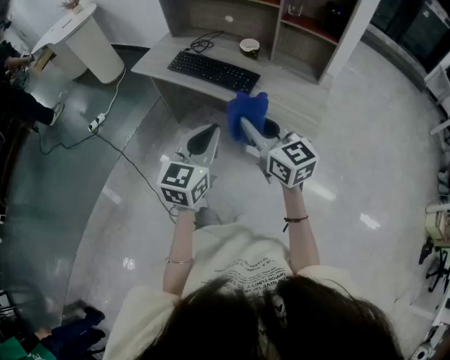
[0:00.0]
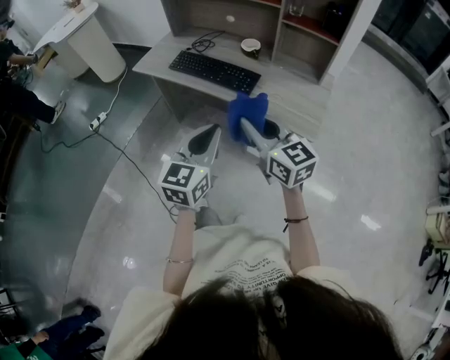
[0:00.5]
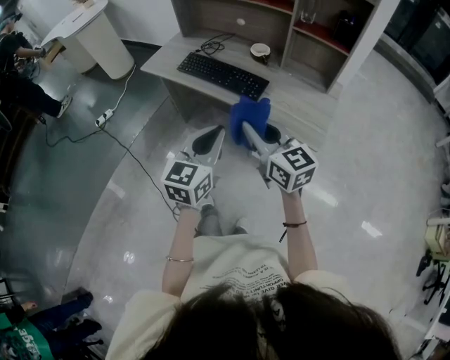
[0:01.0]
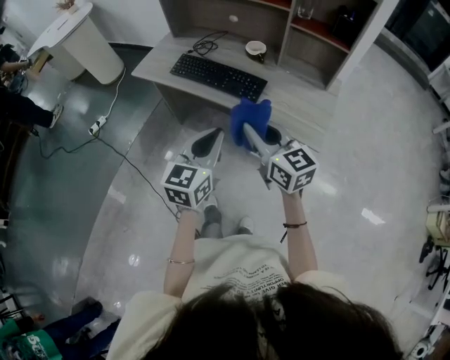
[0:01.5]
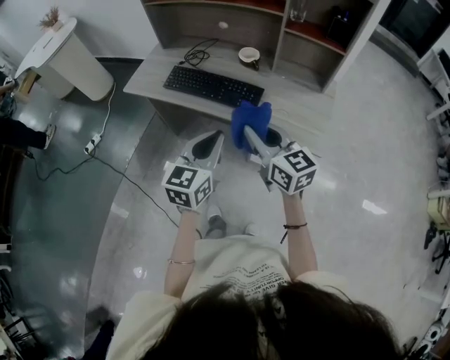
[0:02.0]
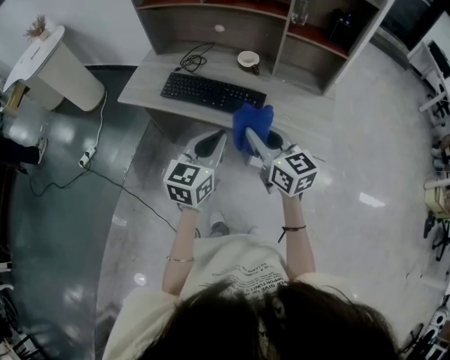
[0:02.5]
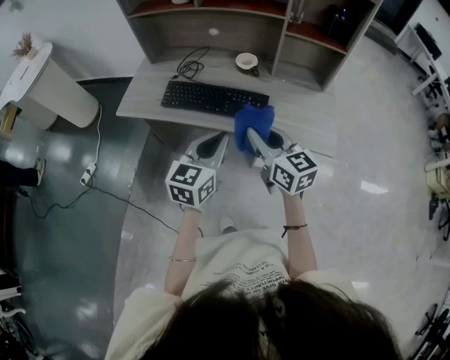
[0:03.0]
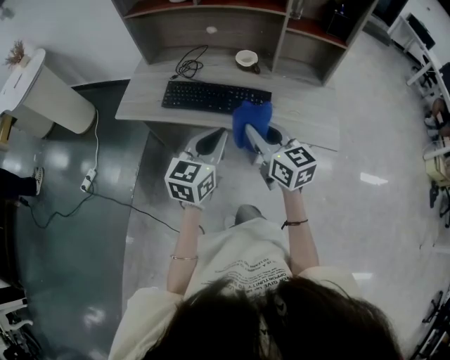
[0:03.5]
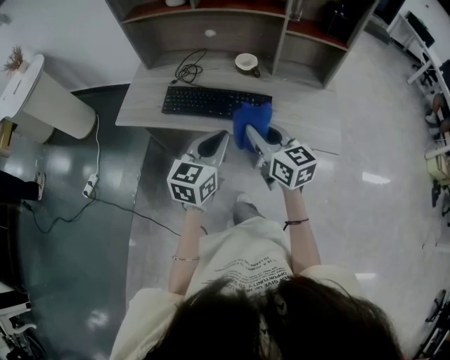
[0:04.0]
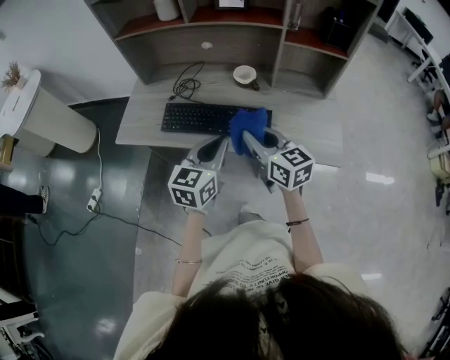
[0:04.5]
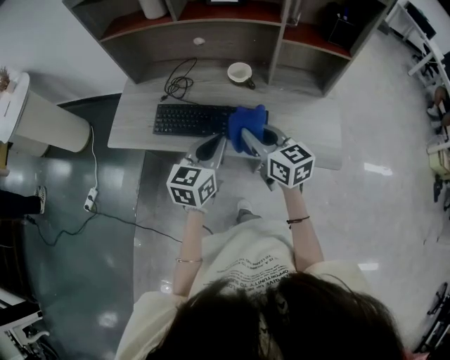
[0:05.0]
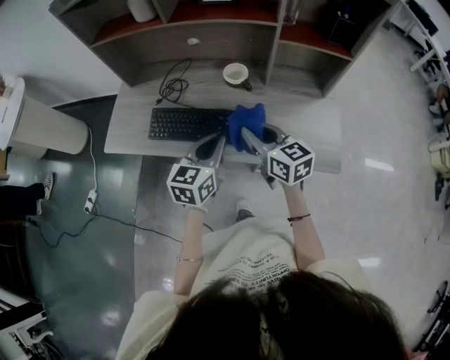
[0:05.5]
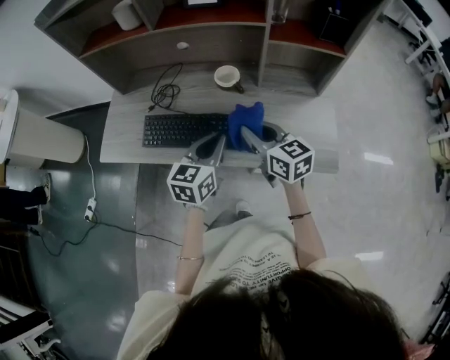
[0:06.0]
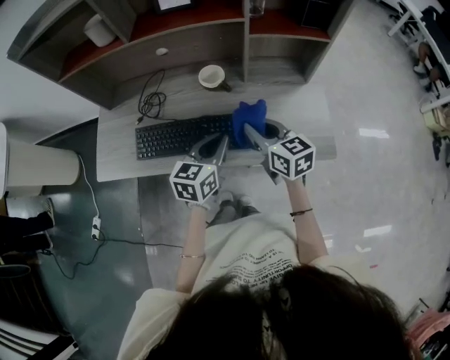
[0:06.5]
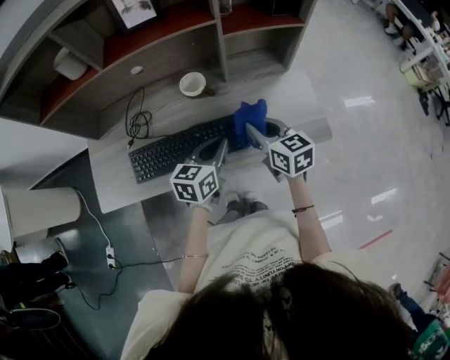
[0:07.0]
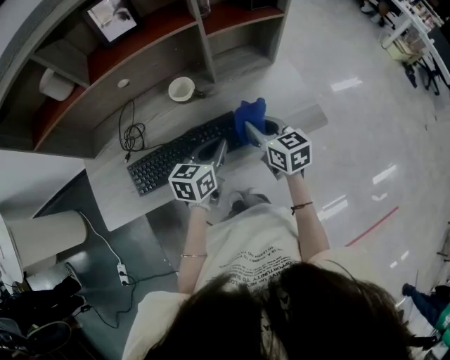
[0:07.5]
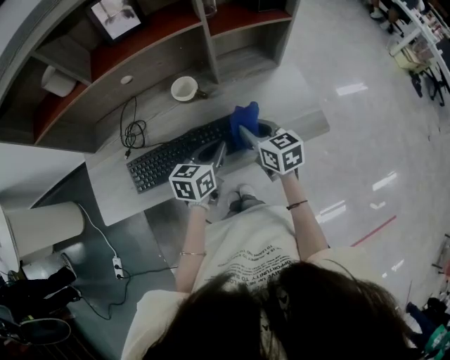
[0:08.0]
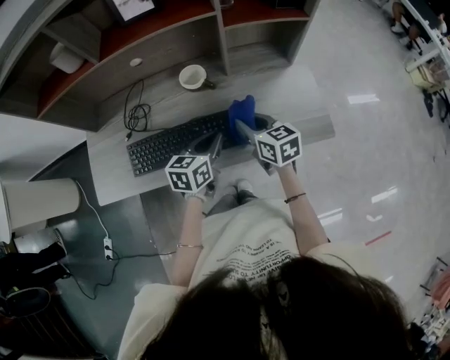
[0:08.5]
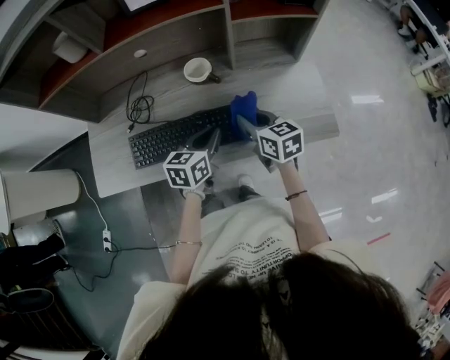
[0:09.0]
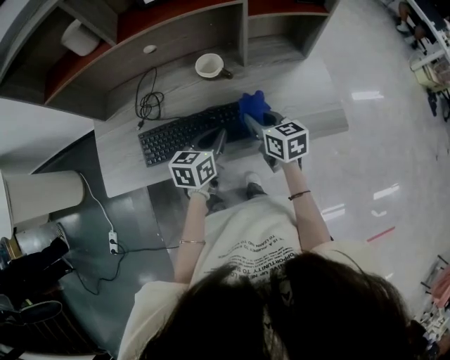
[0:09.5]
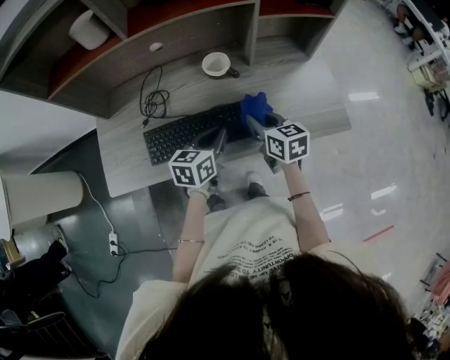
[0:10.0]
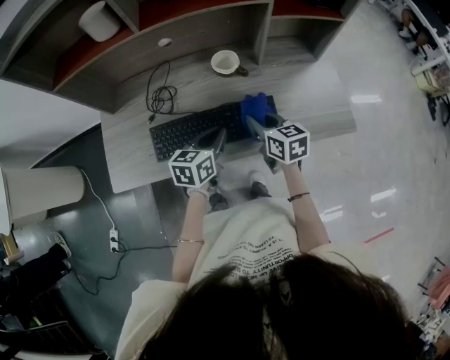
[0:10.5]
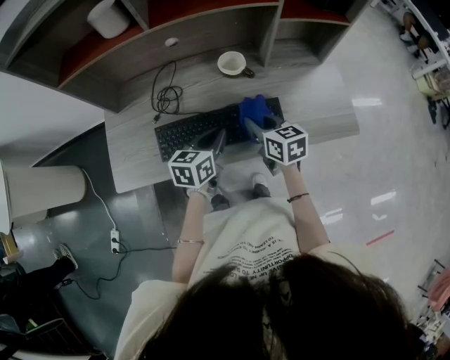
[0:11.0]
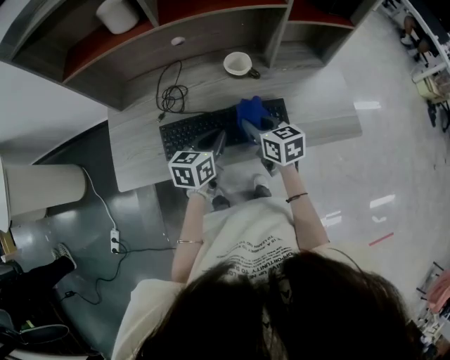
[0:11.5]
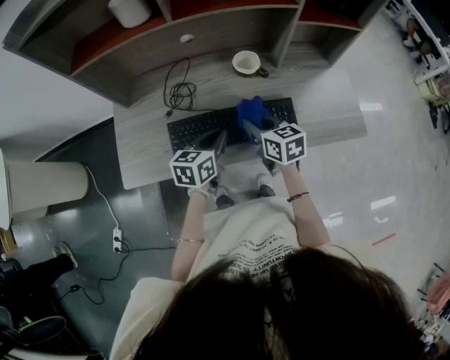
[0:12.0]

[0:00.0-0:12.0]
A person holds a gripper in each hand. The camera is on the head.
0:00.0 to 0:02.0: Both grippers travel together forward, roughly 10 cm.
0:02.0 to 0:04.0: The two grippers go roughly 10 cm forward and to the left.
0:04.0 to 0:06.0: Both grippers travel together forward and to the right, approximately 15 cm.
0:06.0 to 0:08.0: The two grippers go roughly 5 cm downward. The right gripper turns by approximately 30 degrees; the left gripper swivels roughly 30 degrees.
0:08.0 to 0:10.0: The grippers both shift to the left by about 10 cm.
0:10.0 to 0:12.0: The grippers both shift to the left by some 10 cm.

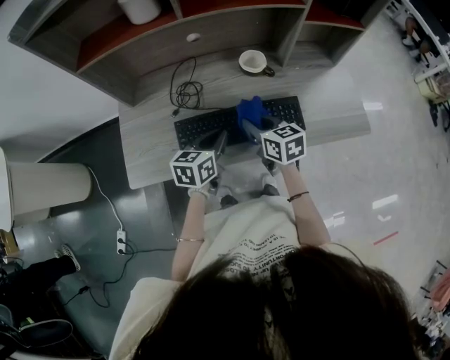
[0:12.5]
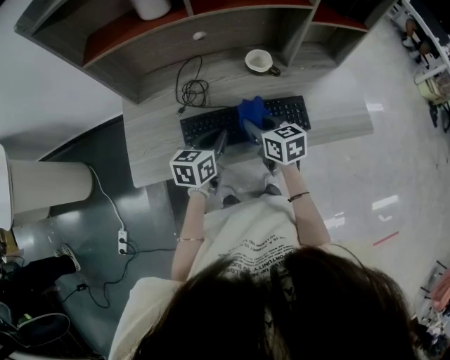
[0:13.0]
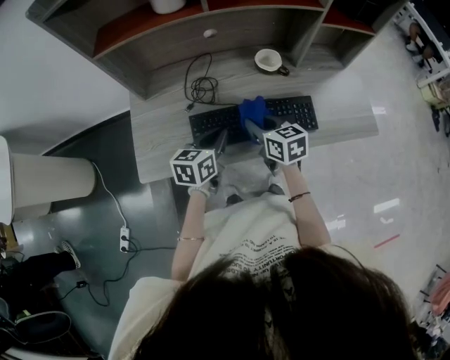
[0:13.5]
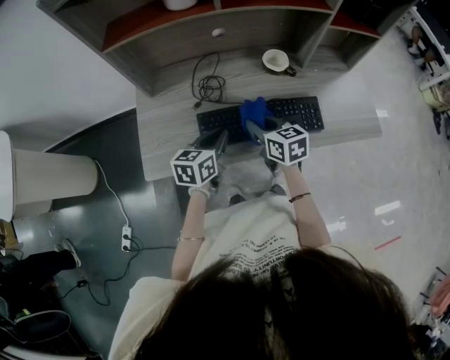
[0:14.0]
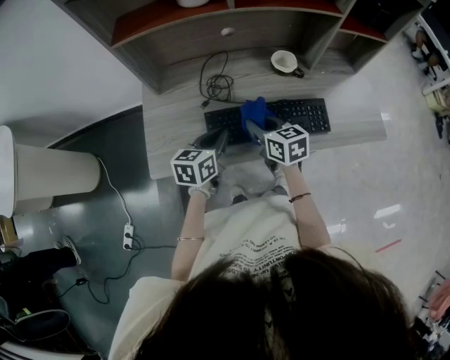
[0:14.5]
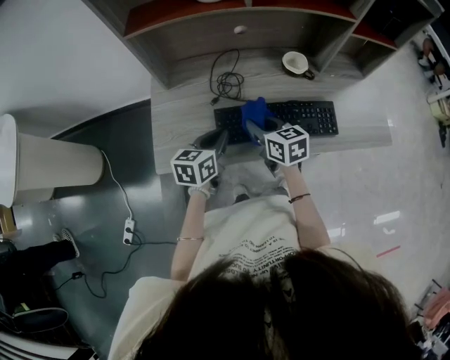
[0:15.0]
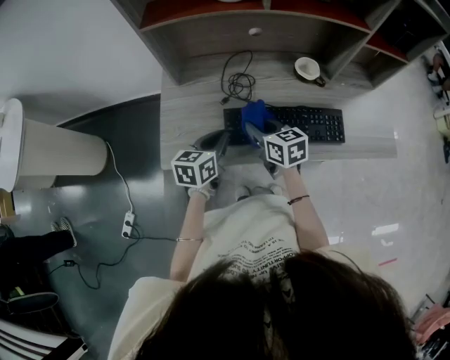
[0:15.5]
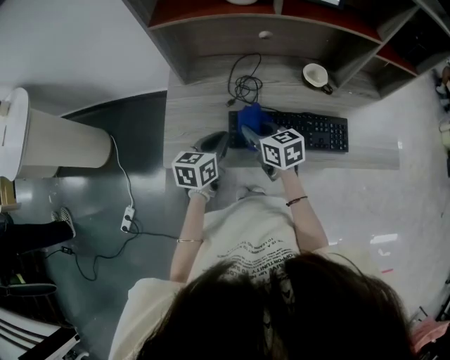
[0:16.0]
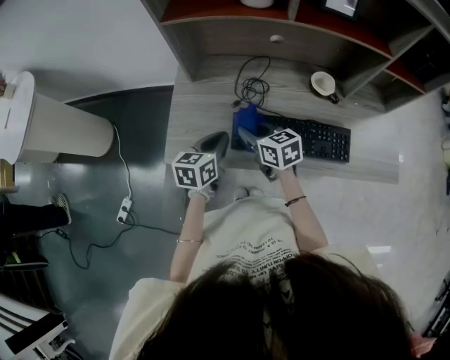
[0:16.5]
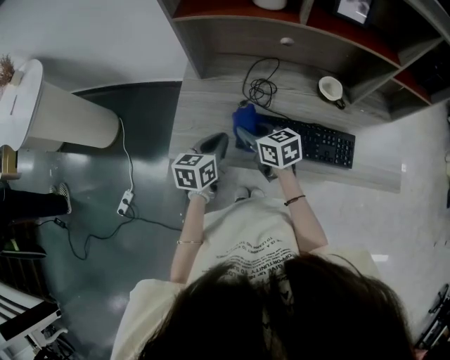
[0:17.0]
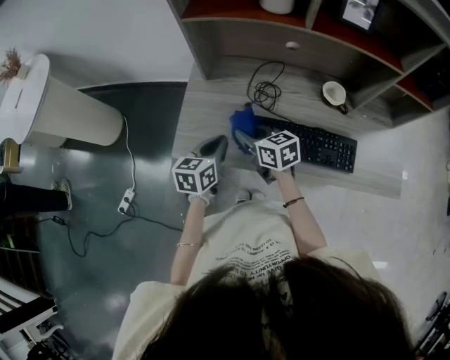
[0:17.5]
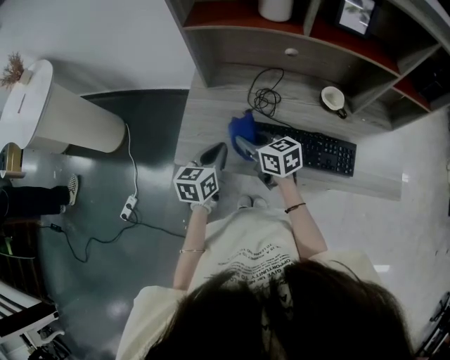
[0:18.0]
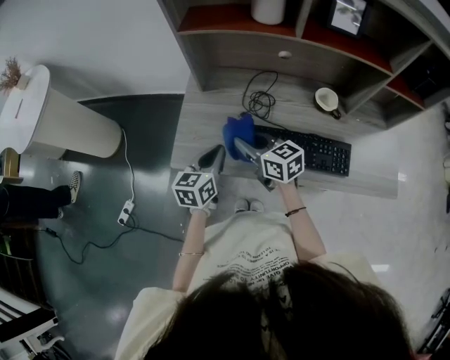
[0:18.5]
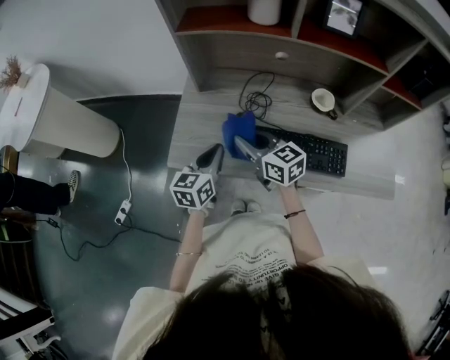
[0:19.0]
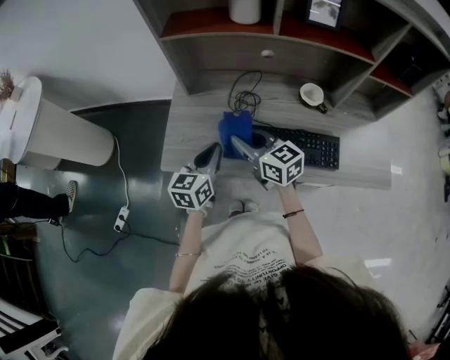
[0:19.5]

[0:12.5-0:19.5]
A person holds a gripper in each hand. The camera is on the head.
0:12.5 to 0:14.5: Both grippers travel together to the left, about 10 cm.
0:14.5 to 0:16.0: The two grippers go approximately 5 cm to the left.
0:16.0 to 0:17.5: The right gripper is displaced to the left by about 5 cm.
0:17.5 to 0:19.5: The right gripper shifts roughly 5 cm upward. Meanwhile the left gripper ends up about 5 cm from where it was.

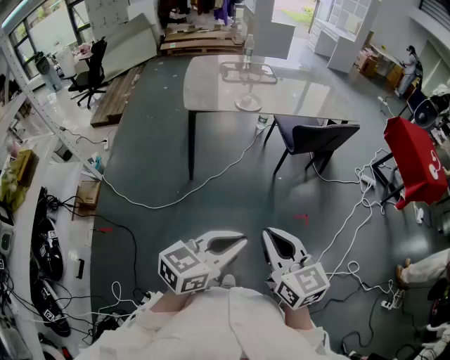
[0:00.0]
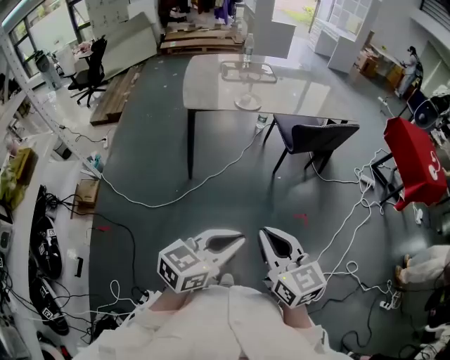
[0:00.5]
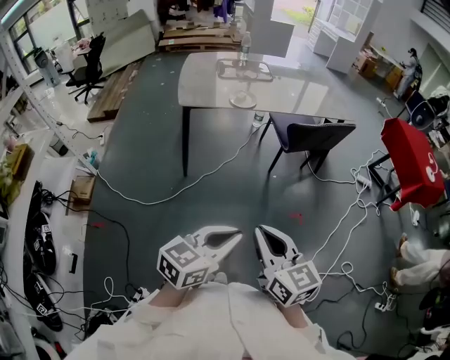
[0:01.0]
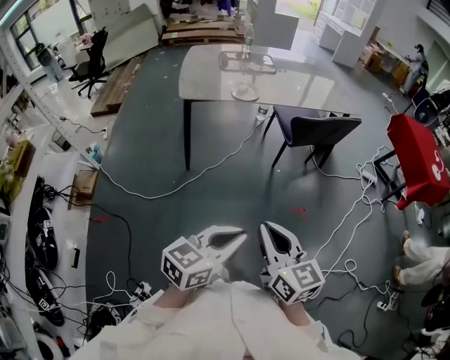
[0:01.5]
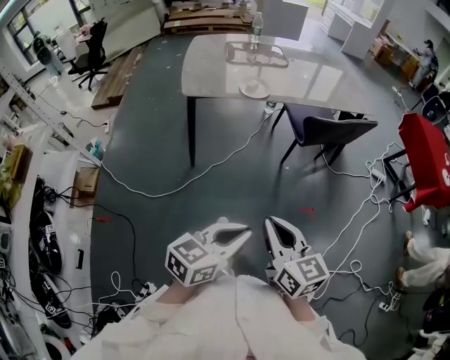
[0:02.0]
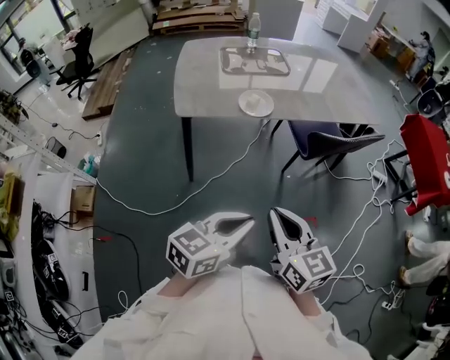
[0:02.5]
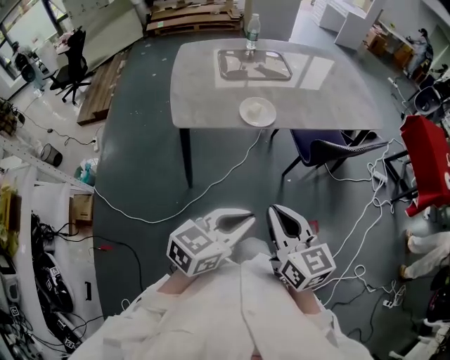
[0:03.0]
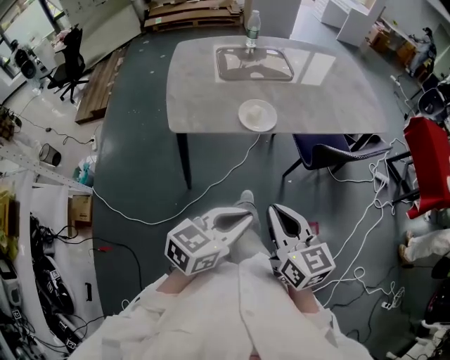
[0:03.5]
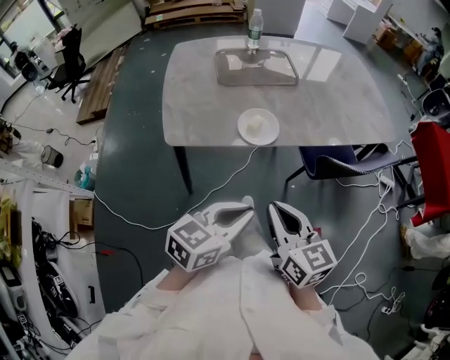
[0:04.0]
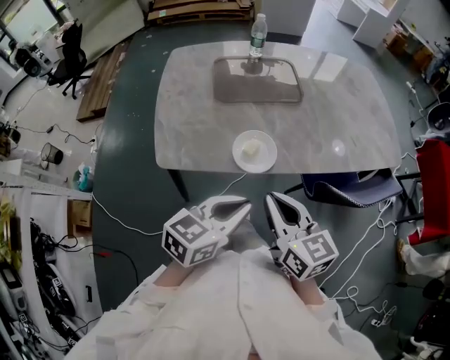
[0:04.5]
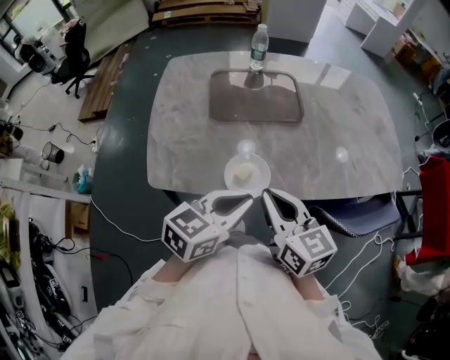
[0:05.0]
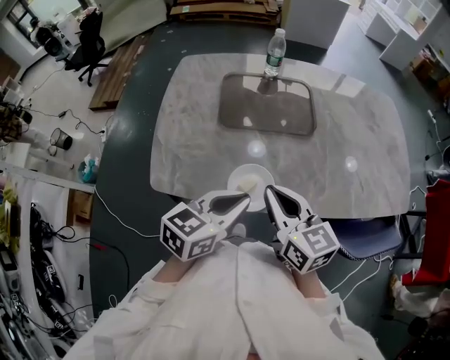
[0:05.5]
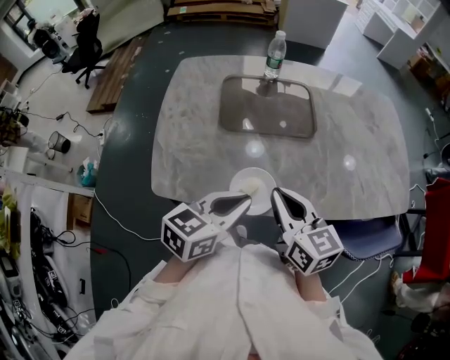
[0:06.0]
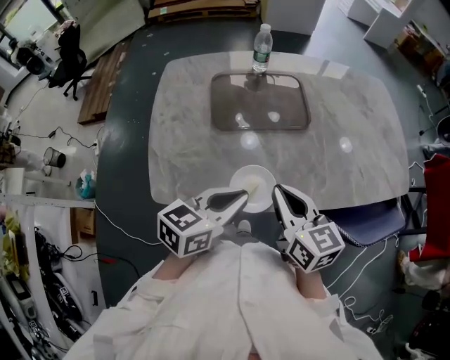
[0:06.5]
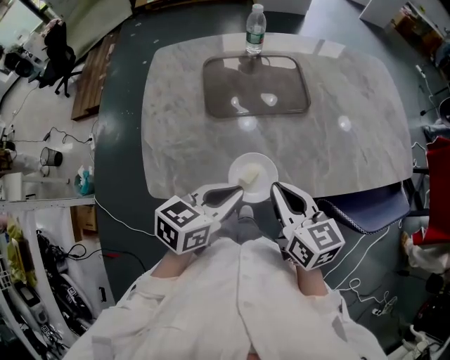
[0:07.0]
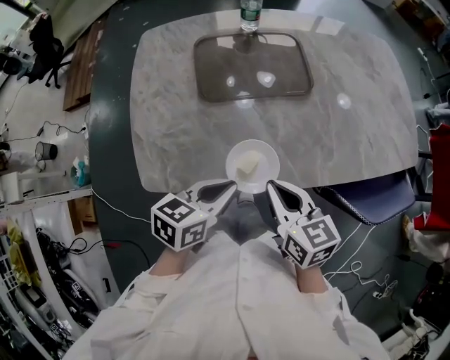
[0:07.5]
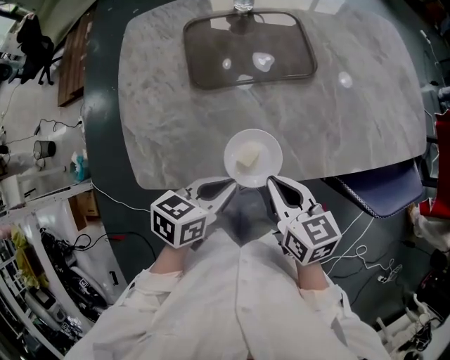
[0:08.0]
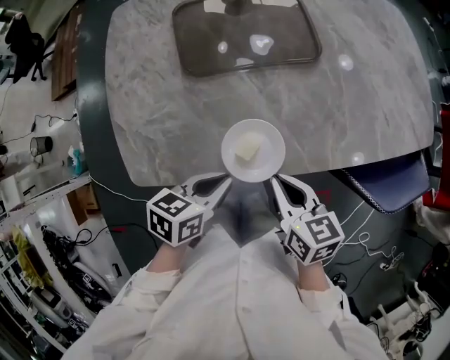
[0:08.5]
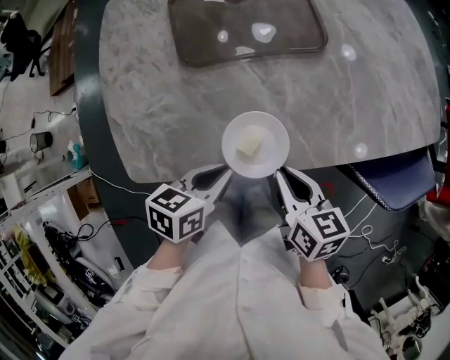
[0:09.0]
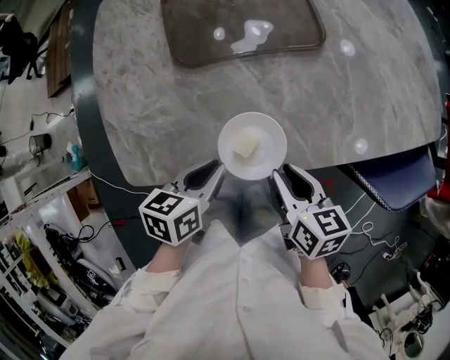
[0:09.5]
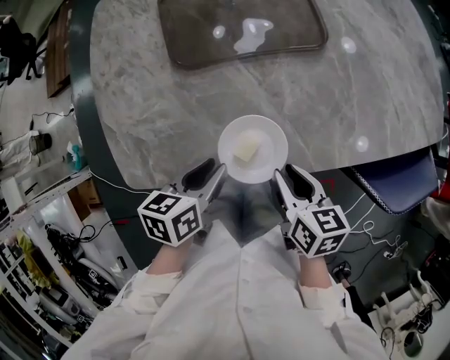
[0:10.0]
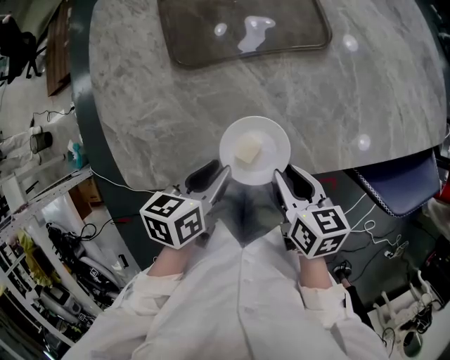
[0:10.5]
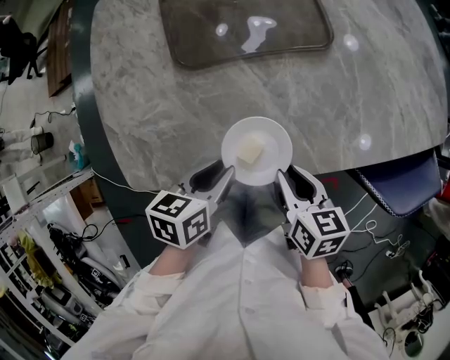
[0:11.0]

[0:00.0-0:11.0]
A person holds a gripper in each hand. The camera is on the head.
0:00.0 to 0:02.0: The two grippers go some 10 cm forward and downward.
0:02.0 to 0:03.5: The two grippers go roughly 25 cm forward and to the left.
0:03.5 to 0:05.5: Both grippers travel together forward, some 35 cm.
0:05.5 to 0:07.5: Both grippers travel together downward, roughly 10 cm.
0:07.5 to 0:09.0: The two grippers go some 10 cm downward.
0:09.0 to 0:11.0: The left gripper opens its fingers.
